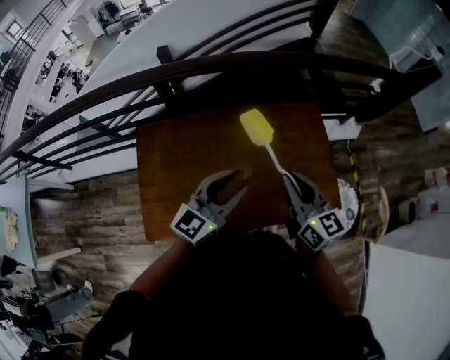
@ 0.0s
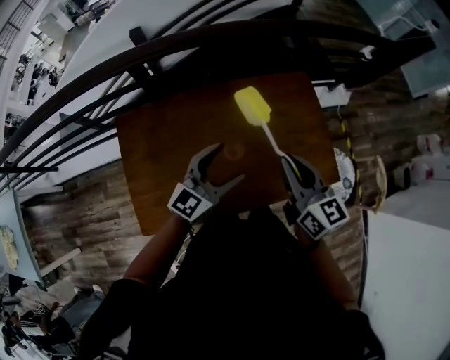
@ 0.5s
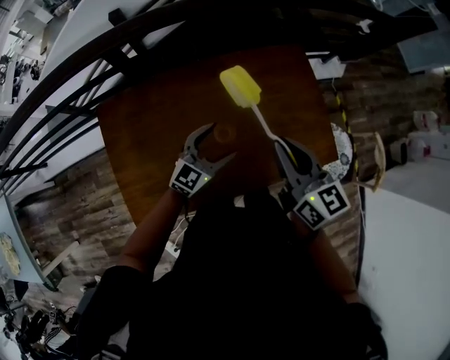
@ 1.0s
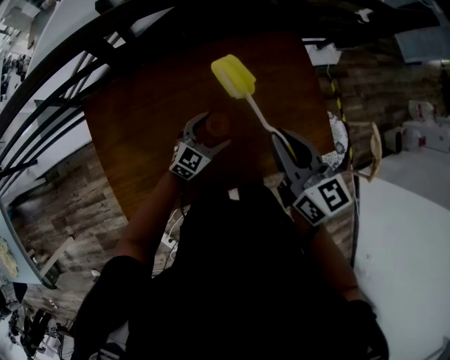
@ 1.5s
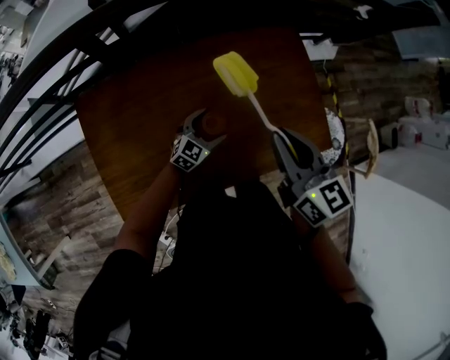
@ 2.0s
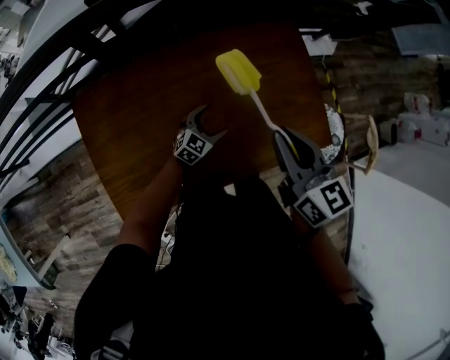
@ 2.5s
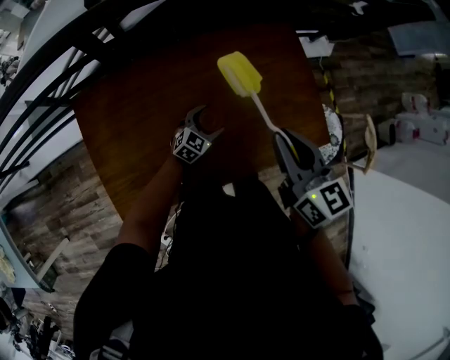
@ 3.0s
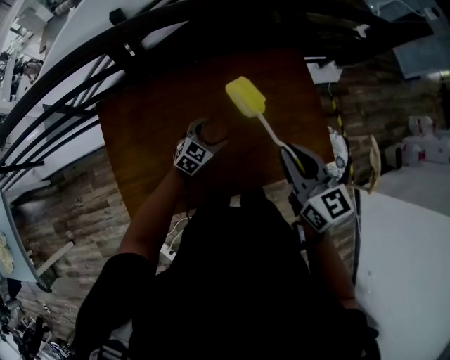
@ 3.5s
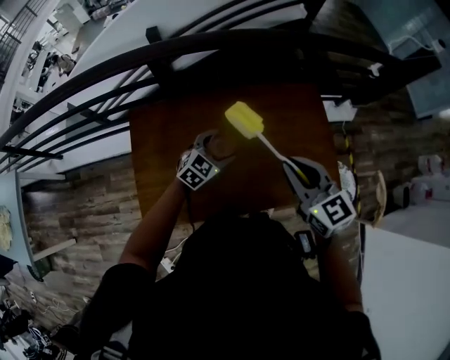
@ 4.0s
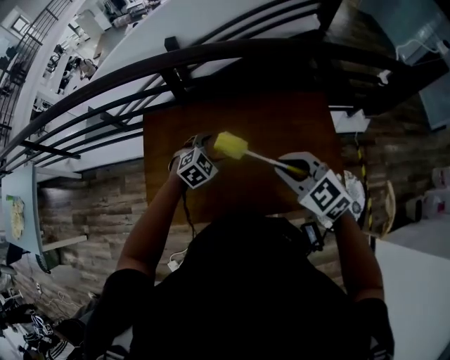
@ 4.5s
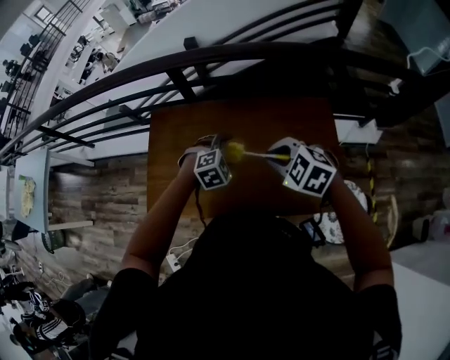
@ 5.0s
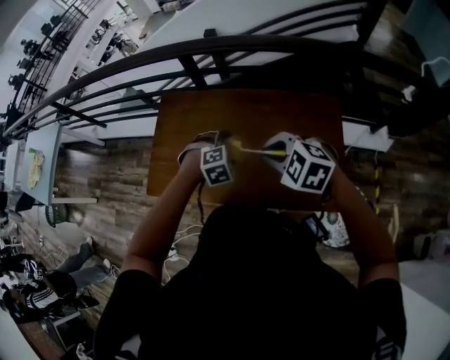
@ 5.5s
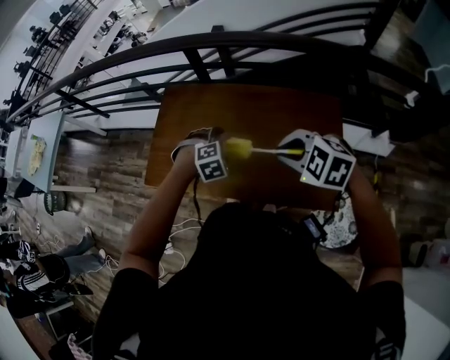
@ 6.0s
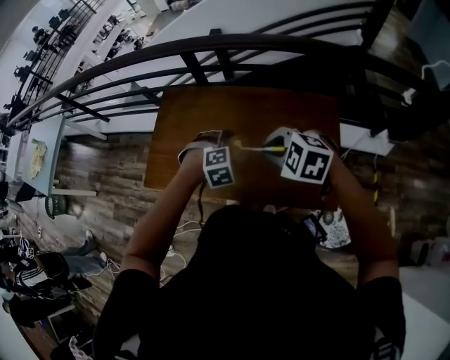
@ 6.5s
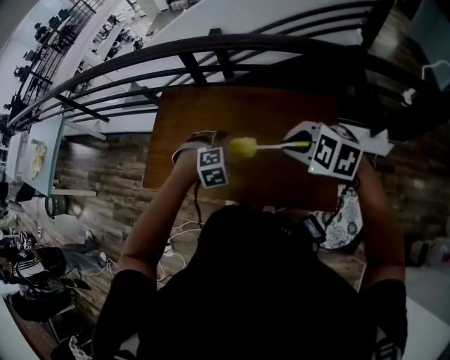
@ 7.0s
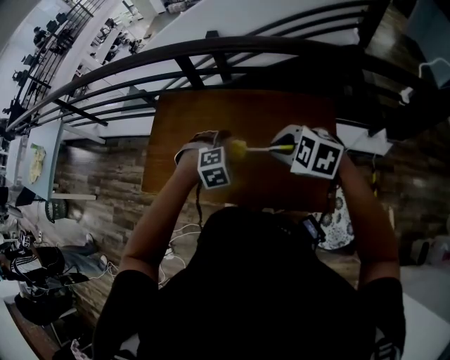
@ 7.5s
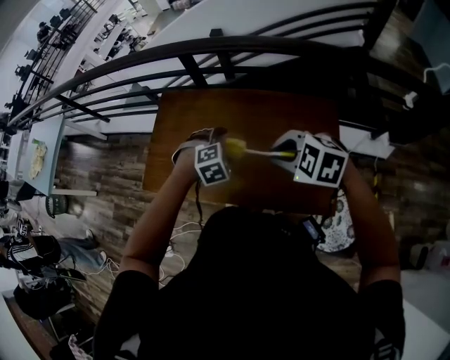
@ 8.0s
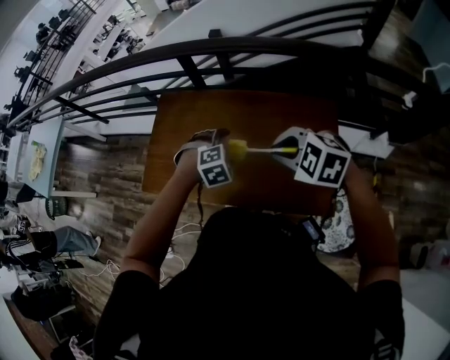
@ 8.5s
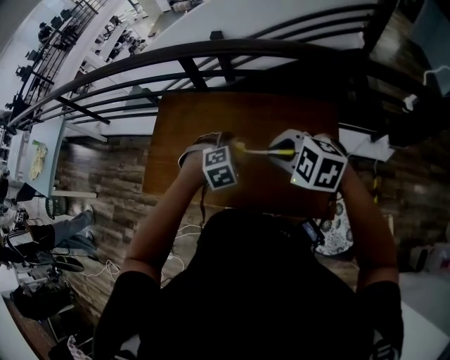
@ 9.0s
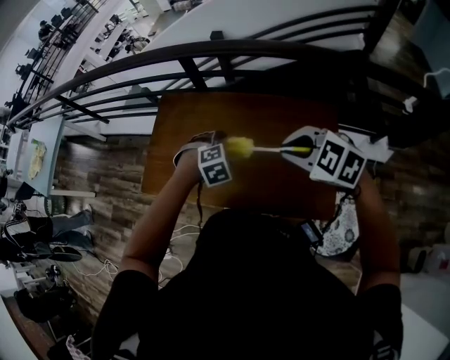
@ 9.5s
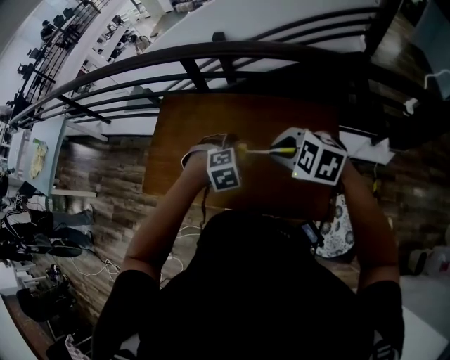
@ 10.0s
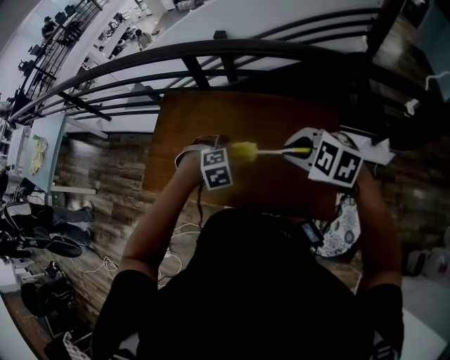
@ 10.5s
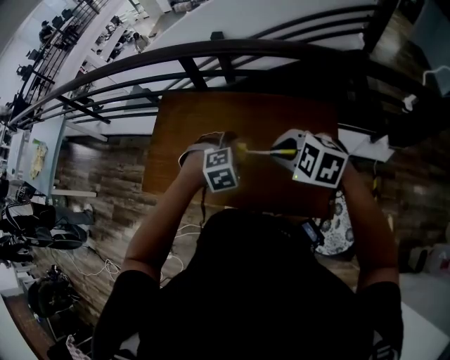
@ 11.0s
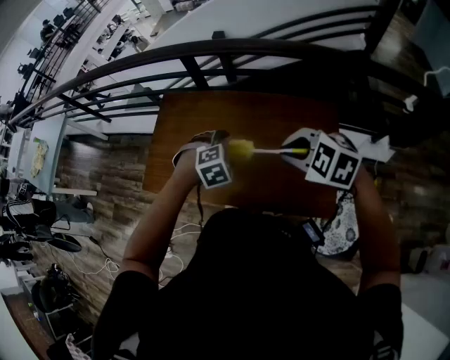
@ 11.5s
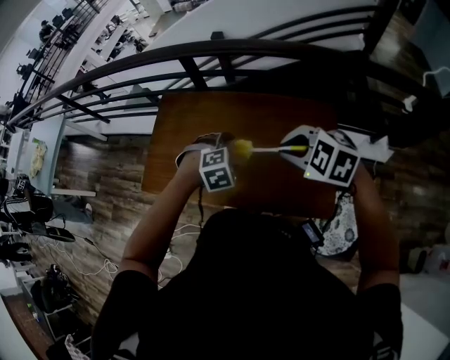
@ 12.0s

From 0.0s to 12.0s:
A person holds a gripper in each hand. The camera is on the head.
From 0.0s to 2.0s: The left gripper shifts roughly 35 cm downward, changes its angle by about 30 degrees, and opens its fingers; the right gripper goes roughly 5 cm downward.
From 2.0s to 4.0s: The left gripper heads upward and to the left, covering approximately 15 cm. Meanwhile the right gripper heads upward, covering approximately 5 cm, and turns by approximately 20 degrees.
From 4.0s to 6.0s: The left gripper moves roughly 10 cm, and tips its fingers downward by approximately 40 degrees, while the right gripper moves approximately 10 cm, and rotates roughly 60 degrees.
From 8.0s to 12.0s: The grippers make only small movements.

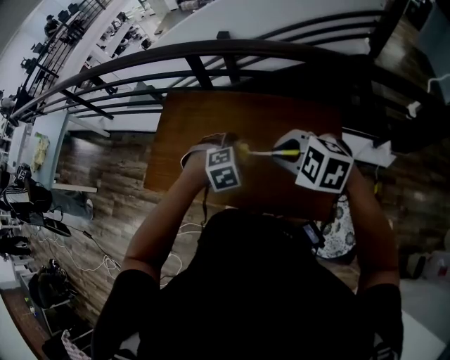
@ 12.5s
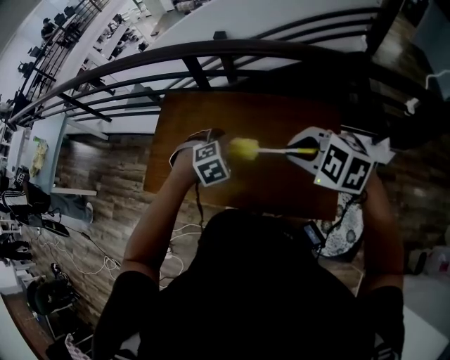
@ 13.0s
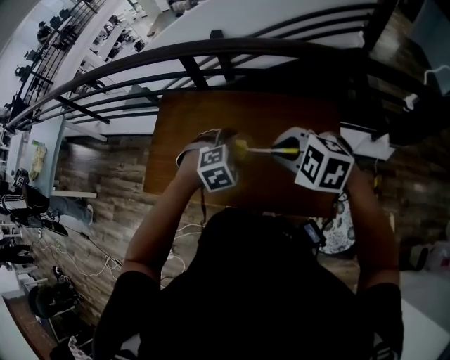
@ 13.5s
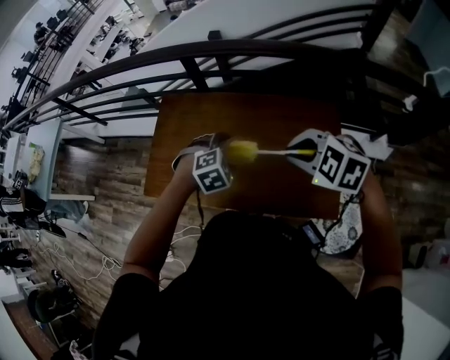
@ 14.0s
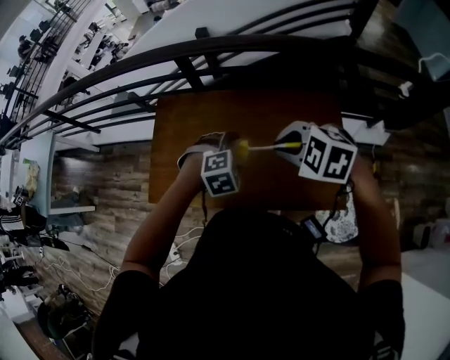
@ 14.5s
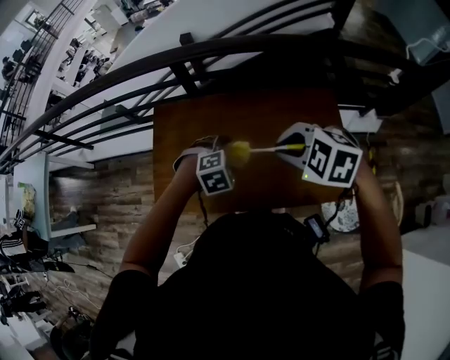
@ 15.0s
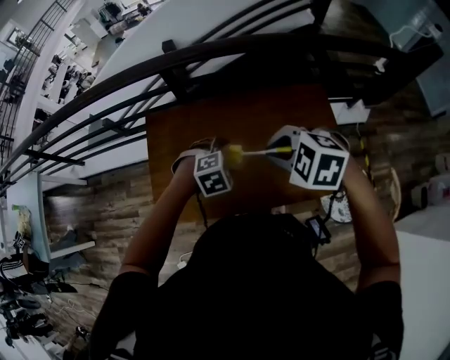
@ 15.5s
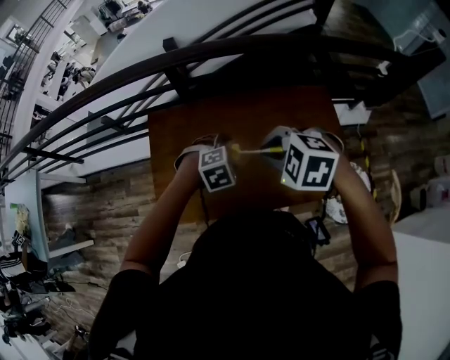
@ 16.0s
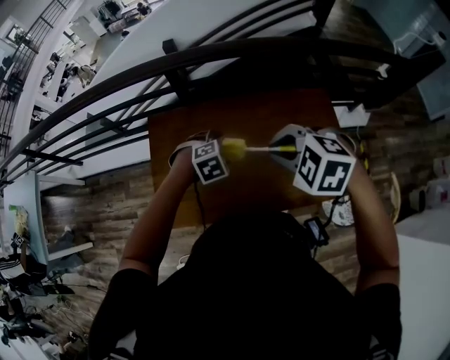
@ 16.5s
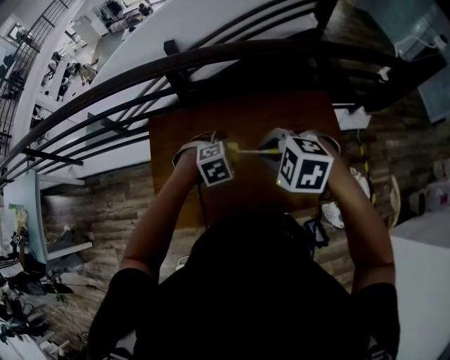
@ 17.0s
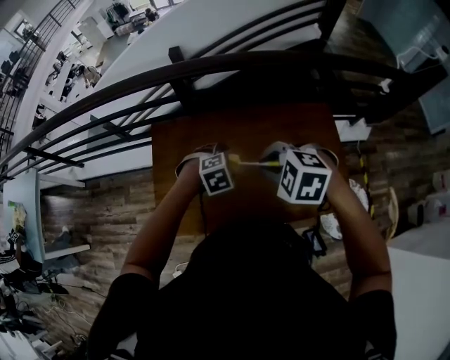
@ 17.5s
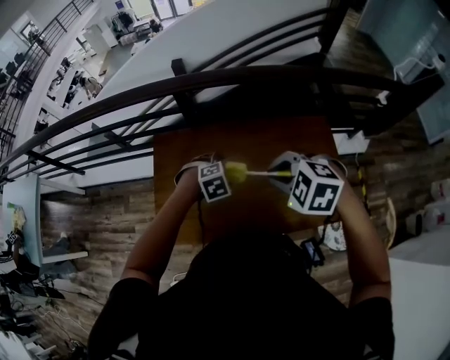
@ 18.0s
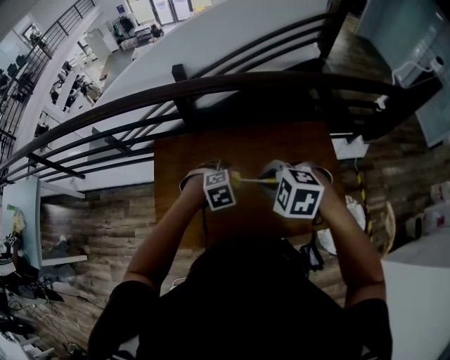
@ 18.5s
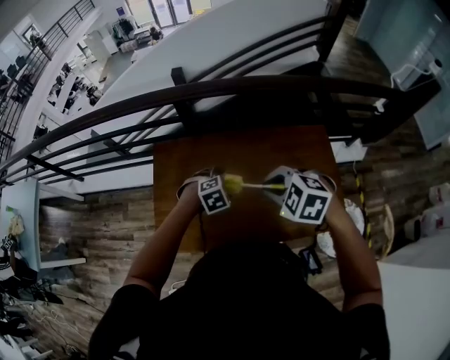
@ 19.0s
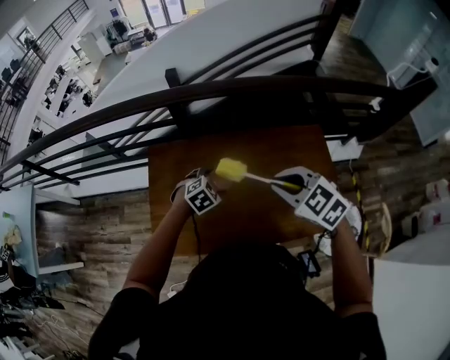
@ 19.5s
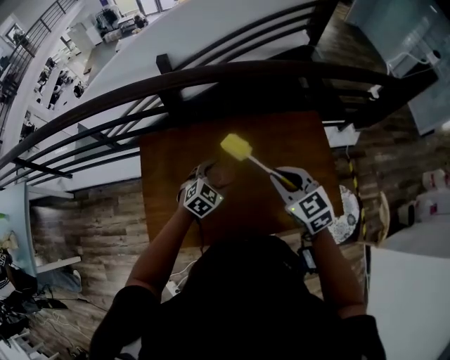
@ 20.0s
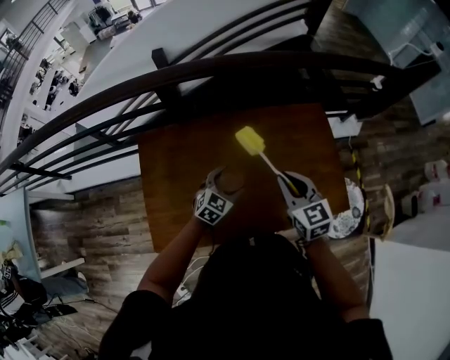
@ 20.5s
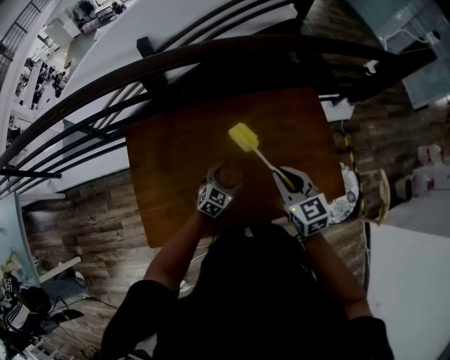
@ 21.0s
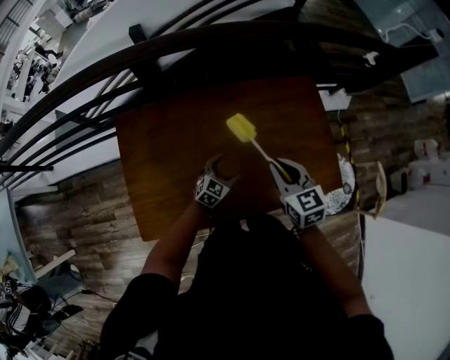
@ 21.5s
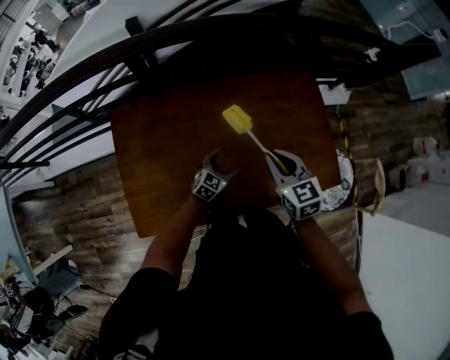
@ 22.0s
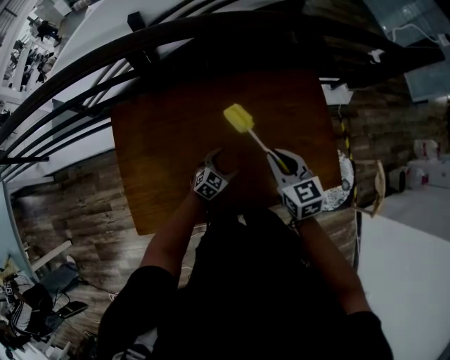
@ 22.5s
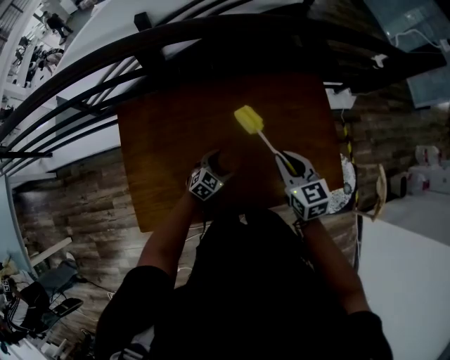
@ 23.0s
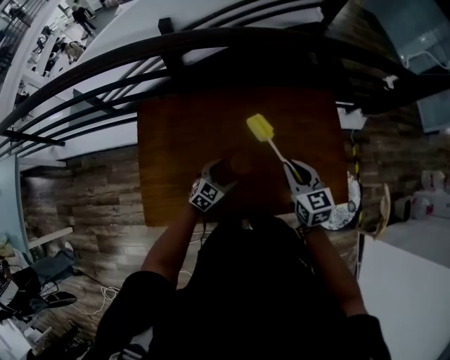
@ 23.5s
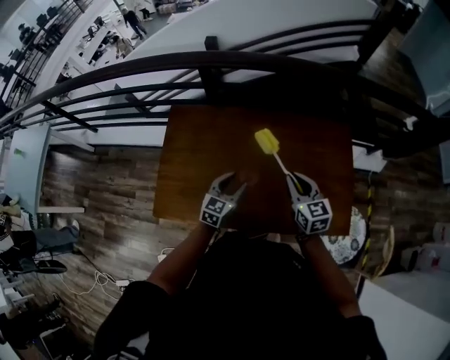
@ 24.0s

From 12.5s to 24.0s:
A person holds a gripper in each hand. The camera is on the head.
From 12.5s to 14.5s: The right gripper ends up some 5 cm from where it was.
From 14.5s to 16.5s: The left gripper is displaced to the left and forward by about 15 cm. Meanwhile the right gripper goes approximately 10 cm to the left.
From 16.5s to 18.5s: There are only small adjustments of the grippers.
From 18.5s to 20.0s: The right gripper travels to the right by some 5 cm, and turns by some 50 degrees, while the left gripper shifts by about 5 cm, and swivels roughly 30 degrees.
From 20.0s to 22.0s: The left gripper is displaced downward and to the right by roughly 20 cm, while the right gripper travels downward by roughly 10 cm.
From 22.0s to 24.0s: The left gripper shifts roughly 15 cm upward, turns by about 30 degrees, and closes its fingers.

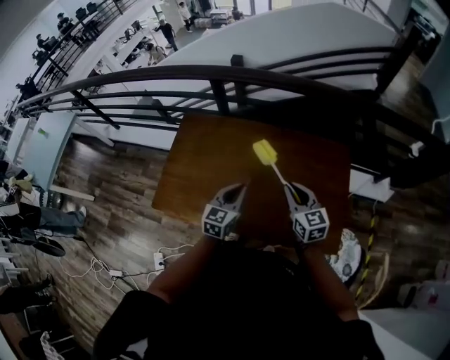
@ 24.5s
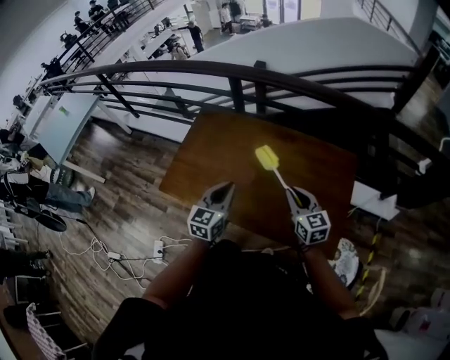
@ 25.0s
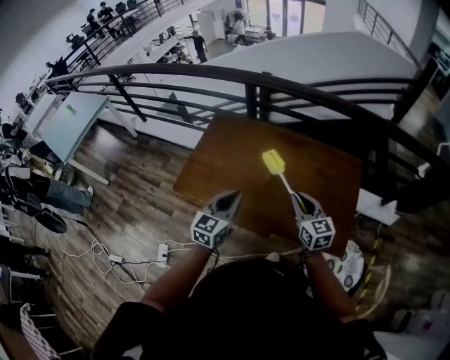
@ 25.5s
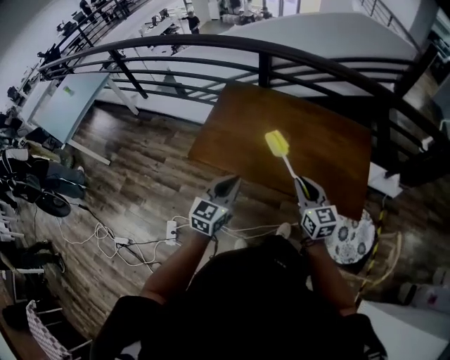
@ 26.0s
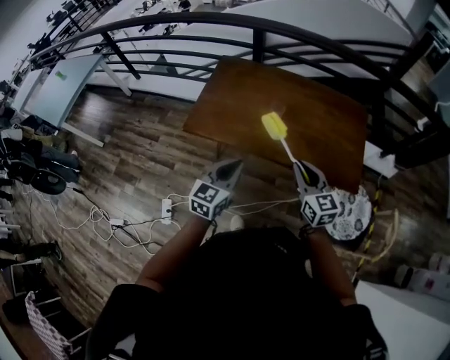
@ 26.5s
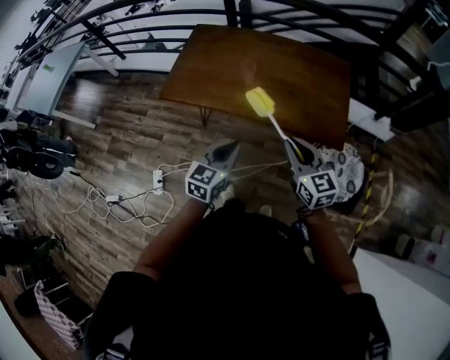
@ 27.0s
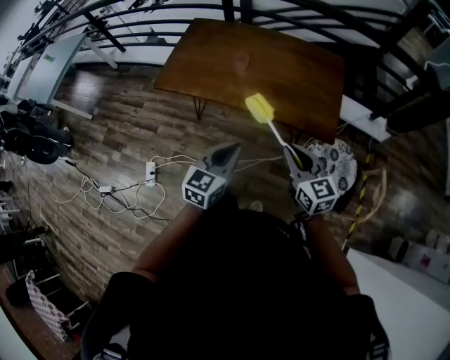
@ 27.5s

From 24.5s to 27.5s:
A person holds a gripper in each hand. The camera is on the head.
From 24.5s to 26.0s: Both grippers travel together backward and to the left, some 30 cm.
From 26.0s to 27.5s: The right gripper moves backward and to the right, approximately 25 cm, while the left gripper moves to the right and backward, some 30 cm.
